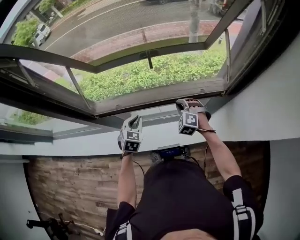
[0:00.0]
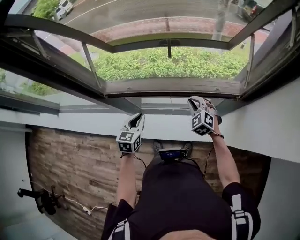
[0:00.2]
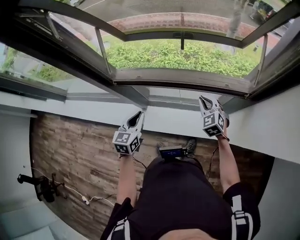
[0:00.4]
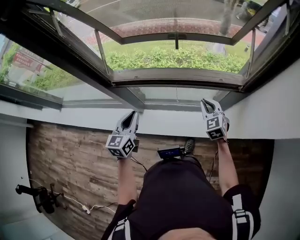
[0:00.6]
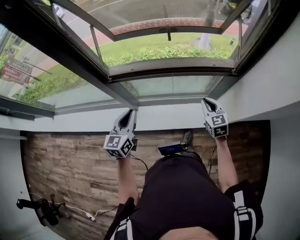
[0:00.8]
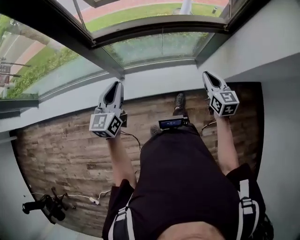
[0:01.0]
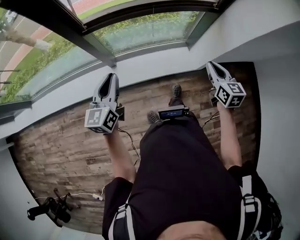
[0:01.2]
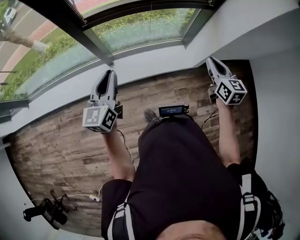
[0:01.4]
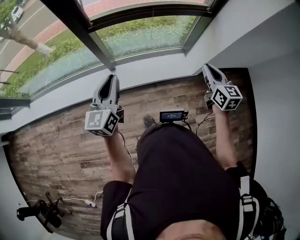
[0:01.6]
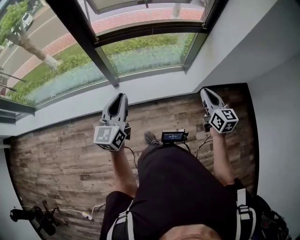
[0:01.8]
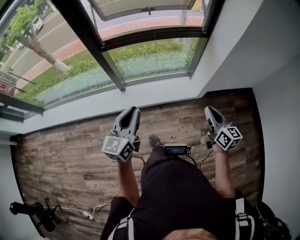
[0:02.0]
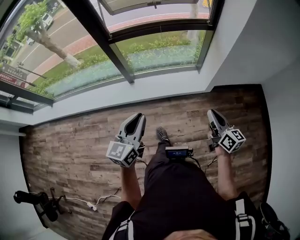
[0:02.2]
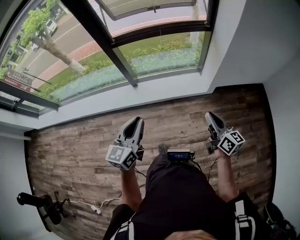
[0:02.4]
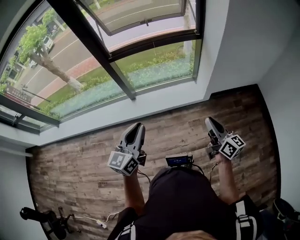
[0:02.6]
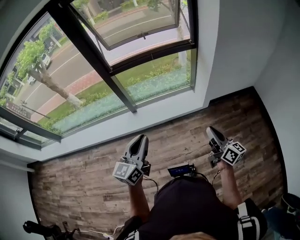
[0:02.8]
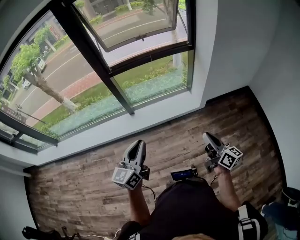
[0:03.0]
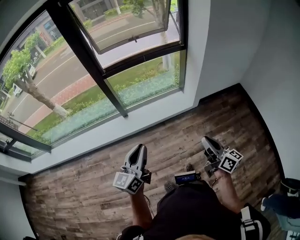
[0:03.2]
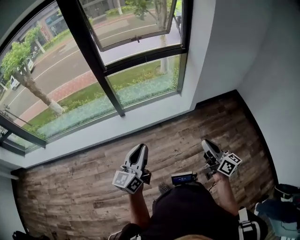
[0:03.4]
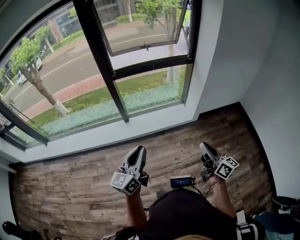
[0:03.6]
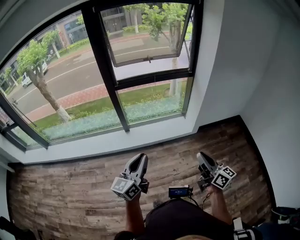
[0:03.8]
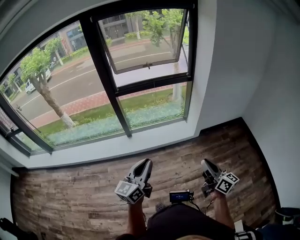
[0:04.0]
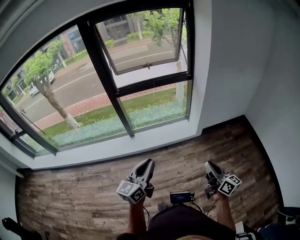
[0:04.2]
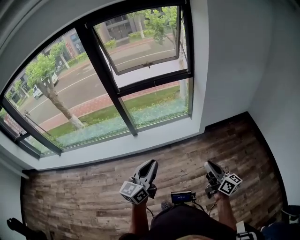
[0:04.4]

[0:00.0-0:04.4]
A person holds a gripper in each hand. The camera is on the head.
0:00.0 to 0:01.4: The right gripper moves backward, about 40 cm, and rolls clockwise, seen from behind, by about 70 degrees. Meanwhile the left gripper is displaced backward, upward and to the left by roughly 40 cm, and tilts its fingers roughly 30 degrees upward.
0:01.4 to 0:03.0: The grippers both shift backward by approximately 35 cm. The right gripper changes its angle by roughly 40 degrees.
0:03.0 to 0:04.4: The left gripper is displaced to the right and backward by some 15 cm, while the right gripper goes roughly 10 cm backward and to the right.

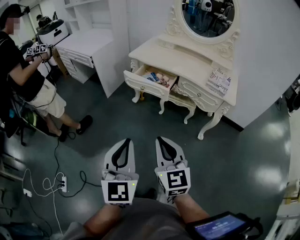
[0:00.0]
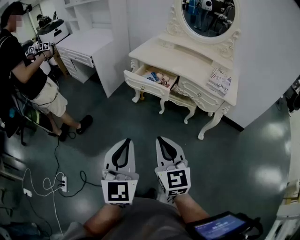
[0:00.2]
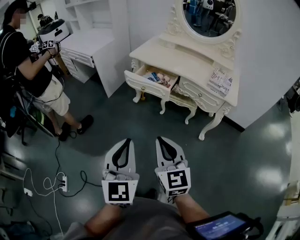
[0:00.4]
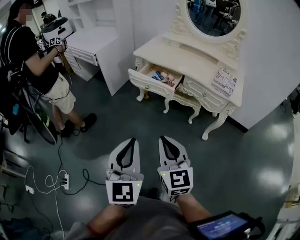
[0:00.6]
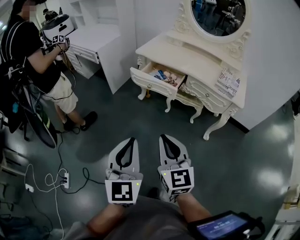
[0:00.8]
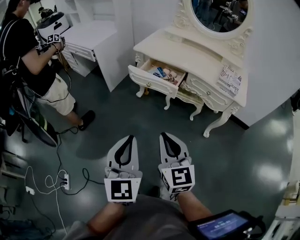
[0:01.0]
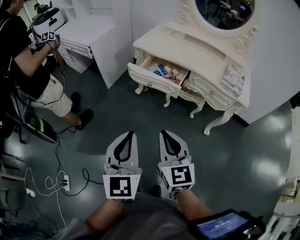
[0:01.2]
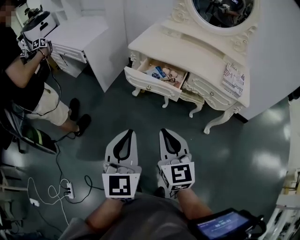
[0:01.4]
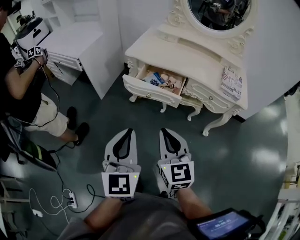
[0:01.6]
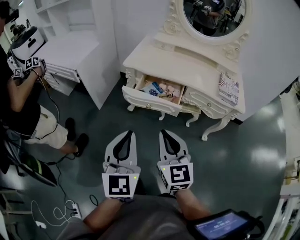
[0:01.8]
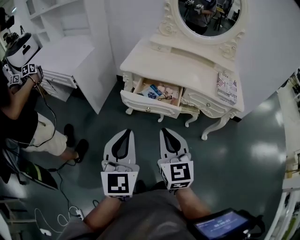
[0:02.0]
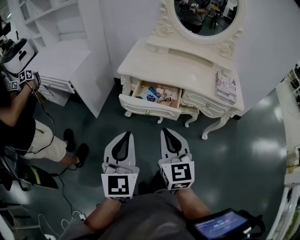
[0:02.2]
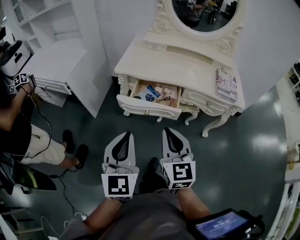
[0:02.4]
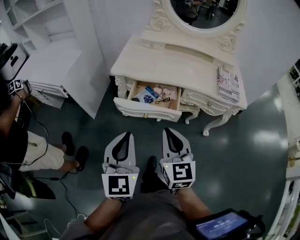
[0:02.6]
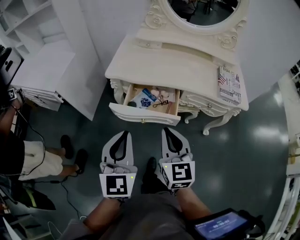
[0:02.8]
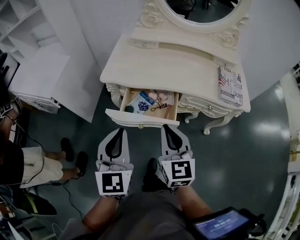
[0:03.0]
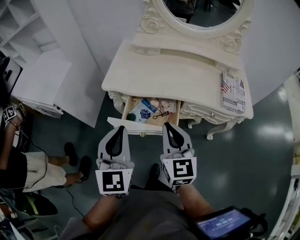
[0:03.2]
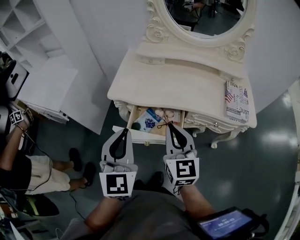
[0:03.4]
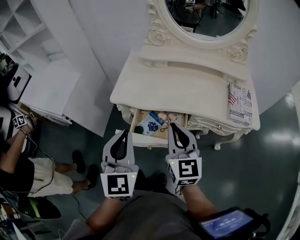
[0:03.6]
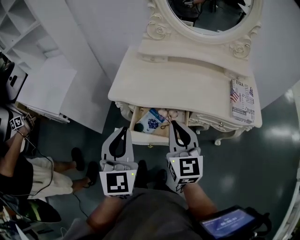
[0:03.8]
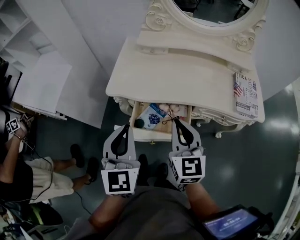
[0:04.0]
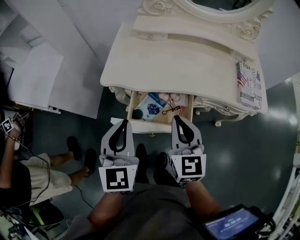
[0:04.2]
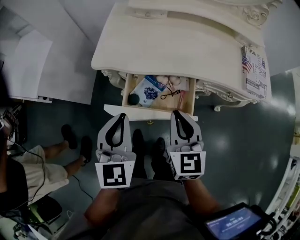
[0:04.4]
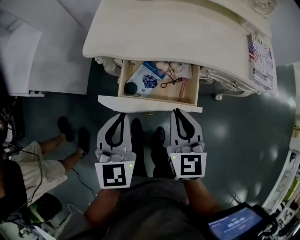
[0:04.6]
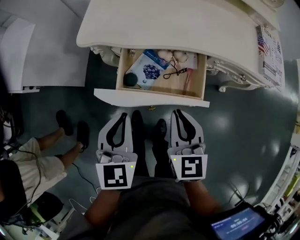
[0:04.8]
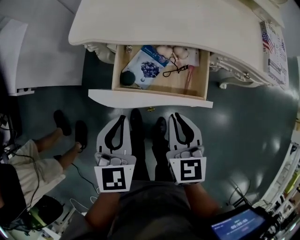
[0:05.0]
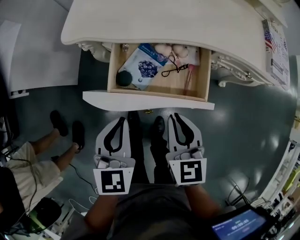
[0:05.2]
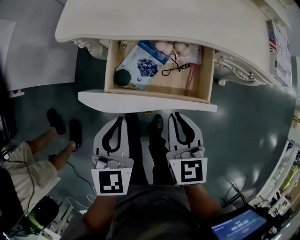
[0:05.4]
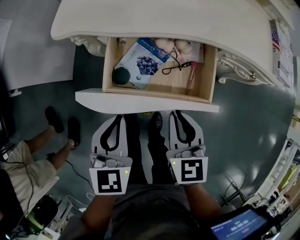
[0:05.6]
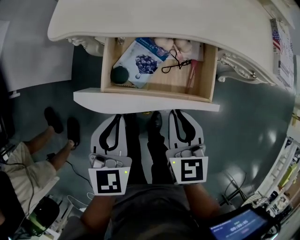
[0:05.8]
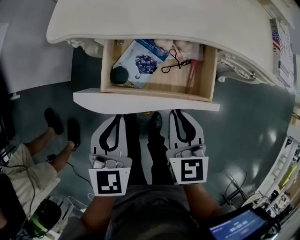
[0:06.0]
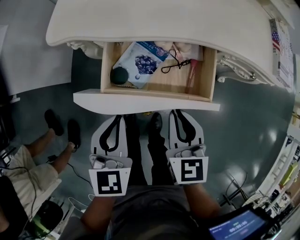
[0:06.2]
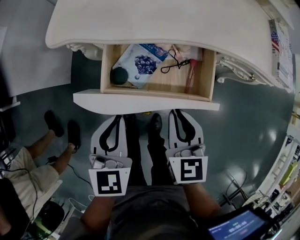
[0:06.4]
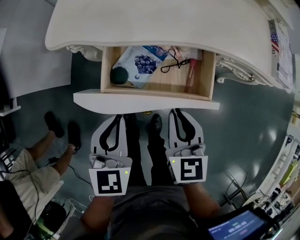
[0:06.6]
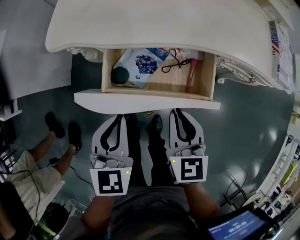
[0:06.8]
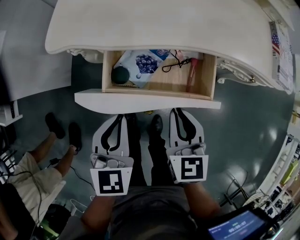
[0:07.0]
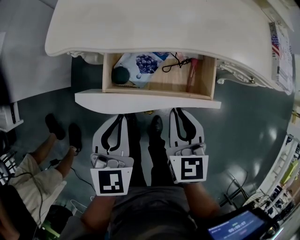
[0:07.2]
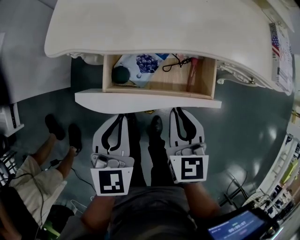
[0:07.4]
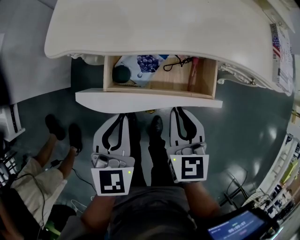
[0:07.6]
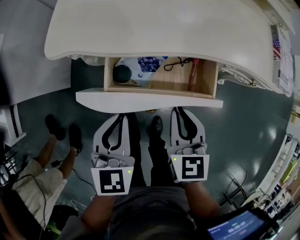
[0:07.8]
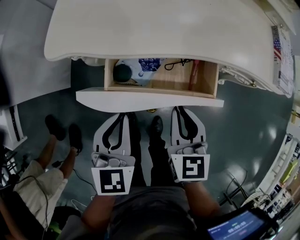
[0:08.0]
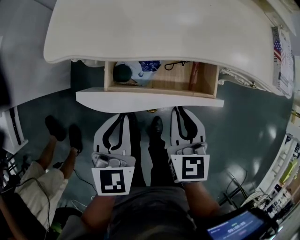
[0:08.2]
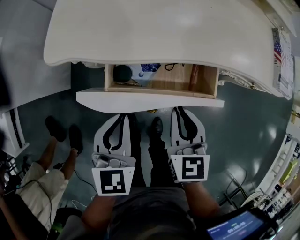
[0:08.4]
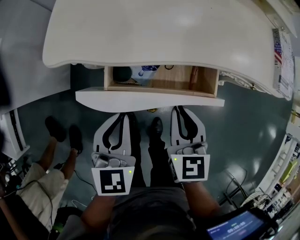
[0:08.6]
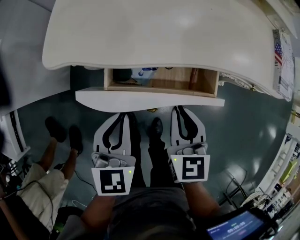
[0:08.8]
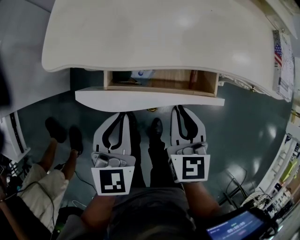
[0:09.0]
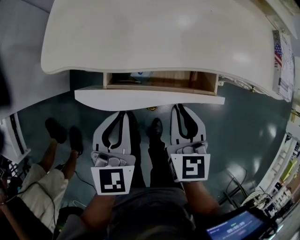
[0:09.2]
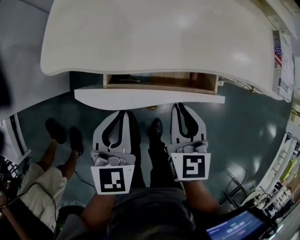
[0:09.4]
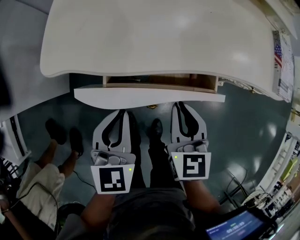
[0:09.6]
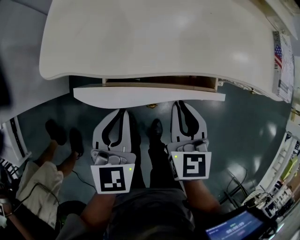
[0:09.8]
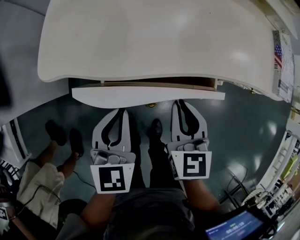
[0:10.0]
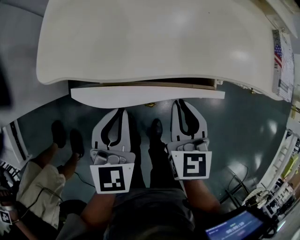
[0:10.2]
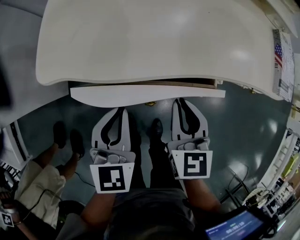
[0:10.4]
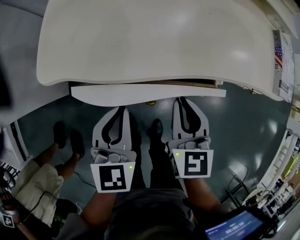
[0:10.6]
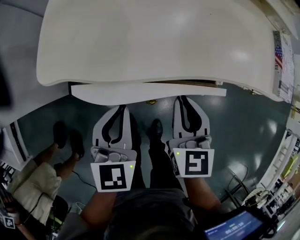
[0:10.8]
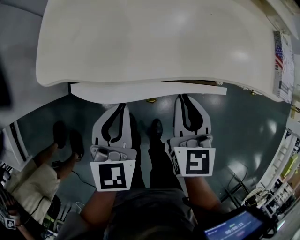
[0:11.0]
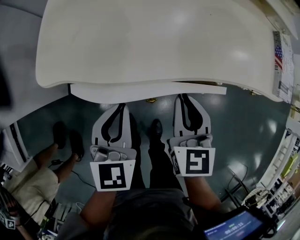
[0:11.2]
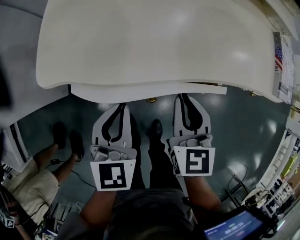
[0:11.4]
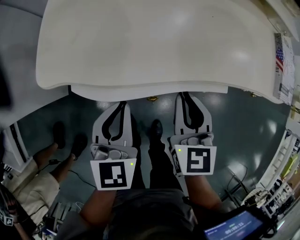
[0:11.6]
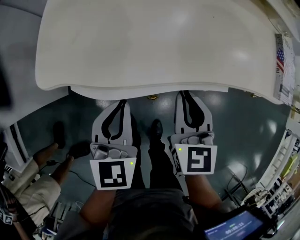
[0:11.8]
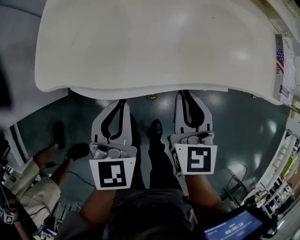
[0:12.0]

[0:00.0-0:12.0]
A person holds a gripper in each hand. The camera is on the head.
0:00.0 to 0:01.6: Both grippers move forward, some 20 cm.
0:01.6 to 0:03.0: The two grippers go some 25 cm forward.
0:03.0 to 0:04.4: The grippers both shift forward and downward by approximately 15 cm.
0:04.4 to 0:06.0: Both grippers move downward, some 15 cm.
0:06.0 to 0:07.6: The left gripper ends up approximately 5 cm from where it was, while the right gripper travels forward by roughly 5 cm.
0:07.6 to 0:09.0: The grippers make only small movements.
0:09.0 to 0:10.4: There are only small adjustments of the grippers.
0:10.4 to 0:12.0: The grippers make only small movements.

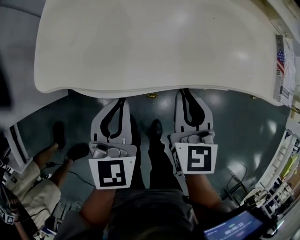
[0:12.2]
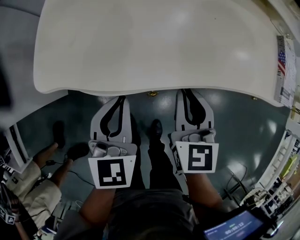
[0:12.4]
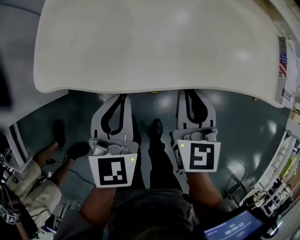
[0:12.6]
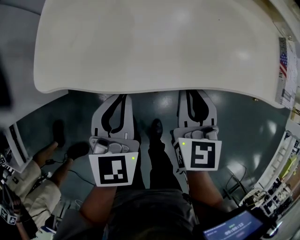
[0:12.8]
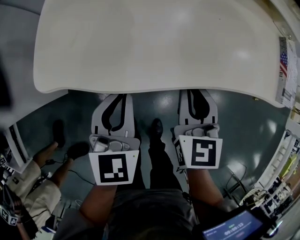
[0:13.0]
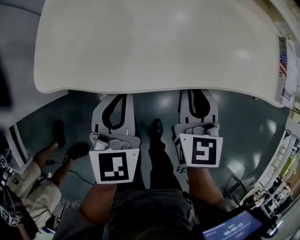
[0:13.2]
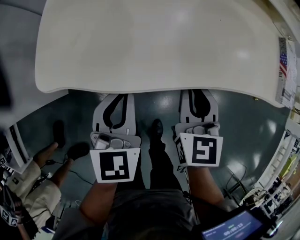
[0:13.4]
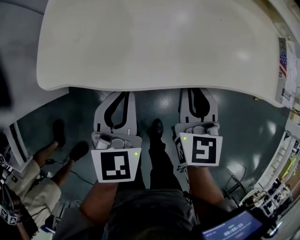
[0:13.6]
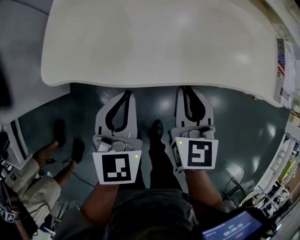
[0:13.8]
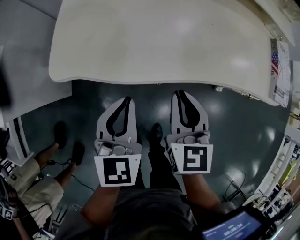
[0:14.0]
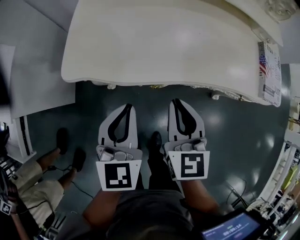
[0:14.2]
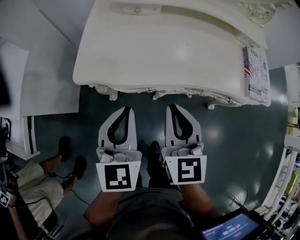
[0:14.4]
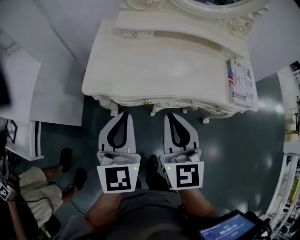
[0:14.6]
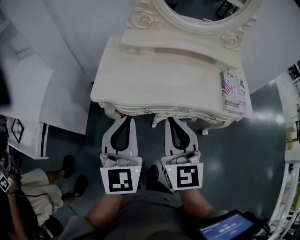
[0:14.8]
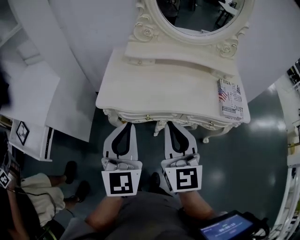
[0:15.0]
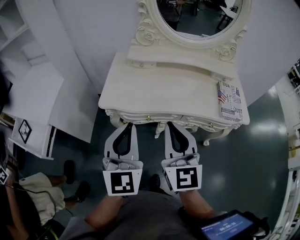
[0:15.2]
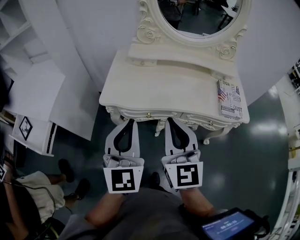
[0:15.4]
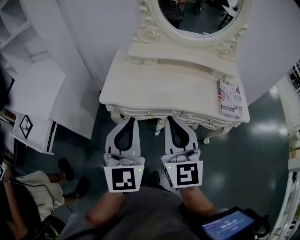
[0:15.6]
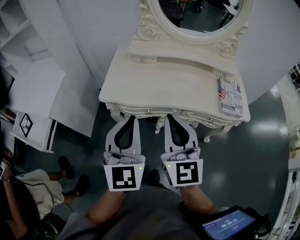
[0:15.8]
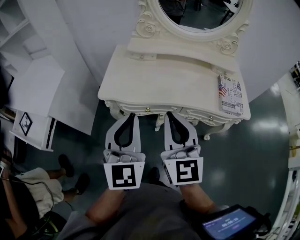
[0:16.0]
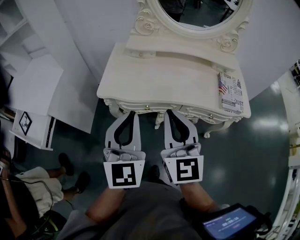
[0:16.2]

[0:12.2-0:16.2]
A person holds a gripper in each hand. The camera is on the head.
0:12.2 to 0:13.6: There are only small adjustments of the grippers.
0:13.6 to 0:14.8: The left gripper is displaced upward by approximately 30 cm, and turns by approximately 30 degrees; the right gripper shifts some 30 cm upward and backward, and rotates about 30 degrees.
0:14.8 to 0:16.2: The left gripper goes about 5 cm backward. Meanwhile the right gripper changes place by approximately 5 cm.

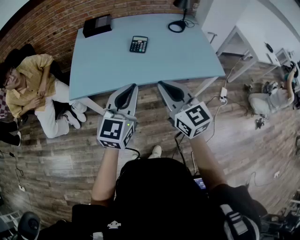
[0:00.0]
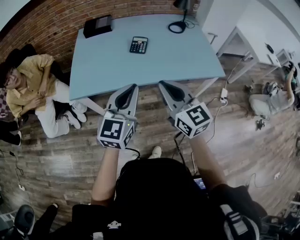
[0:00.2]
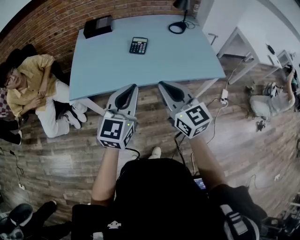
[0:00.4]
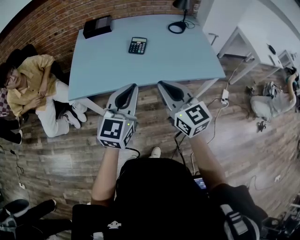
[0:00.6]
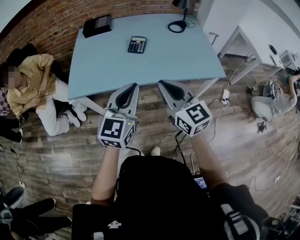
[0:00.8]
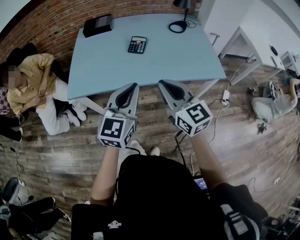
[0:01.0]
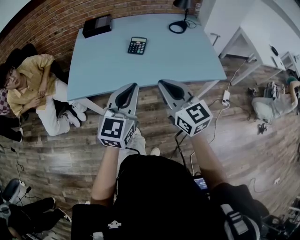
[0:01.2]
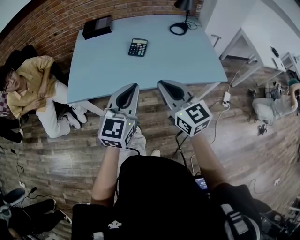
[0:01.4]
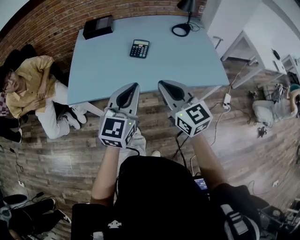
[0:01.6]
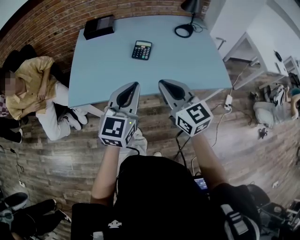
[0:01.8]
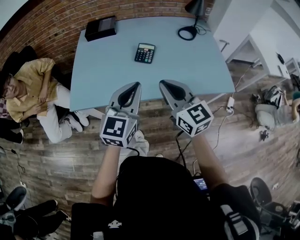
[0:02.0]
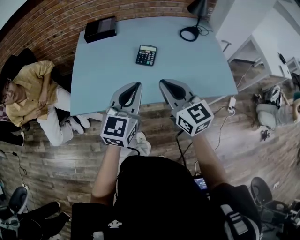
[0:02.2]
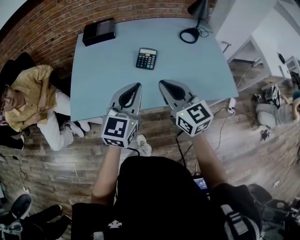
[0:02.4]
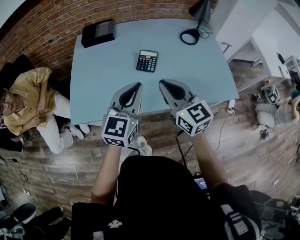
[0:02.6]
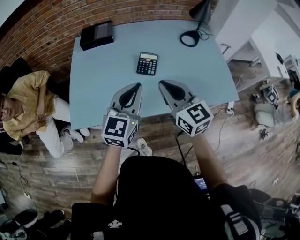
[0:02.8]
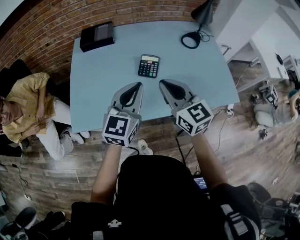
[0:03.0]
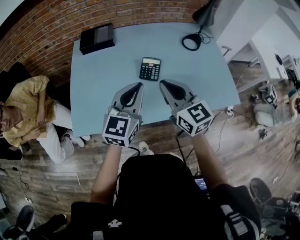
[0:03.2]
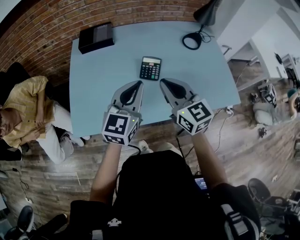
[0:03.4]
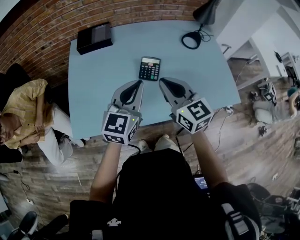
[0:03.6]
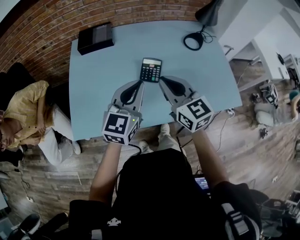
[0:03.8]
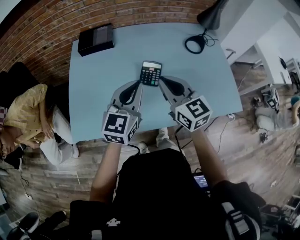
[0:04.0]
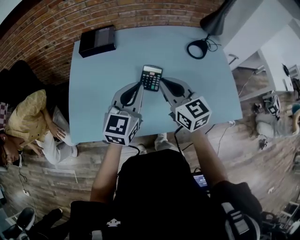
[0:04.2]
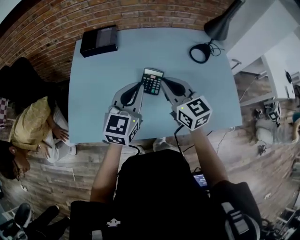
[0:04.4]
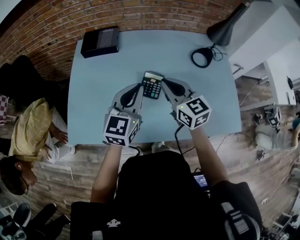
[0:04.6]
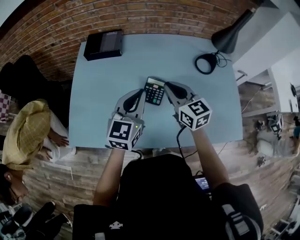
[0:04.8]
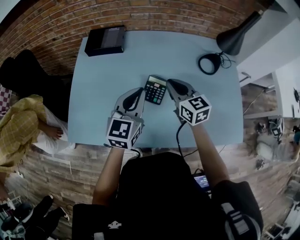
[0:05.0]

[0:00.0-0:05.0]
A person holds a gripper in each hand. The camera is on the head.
0:00.0 to 0:01.6: Both grippers move forward, some 5 cm.
0:01.6 to 0:03.4: The two grippers go approximately 20 cm forward.
0:03.4 to 0:05.0: The right gripper heads forward and downward, covering some 20 cm. The left gripper is displaced forward by some 15 cm.
